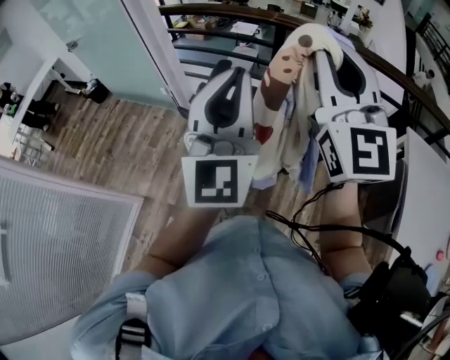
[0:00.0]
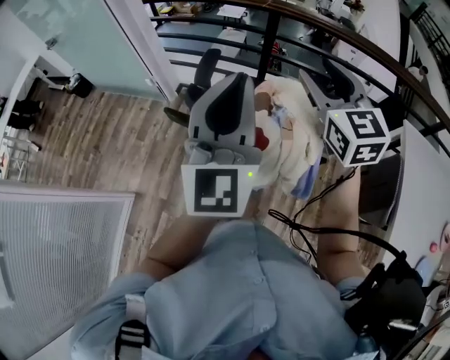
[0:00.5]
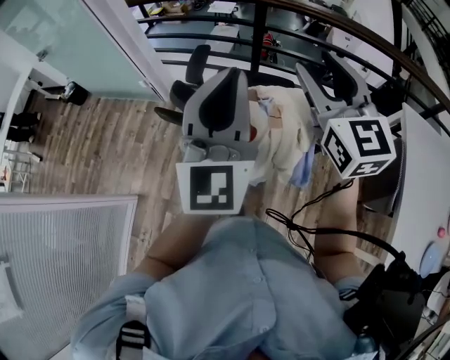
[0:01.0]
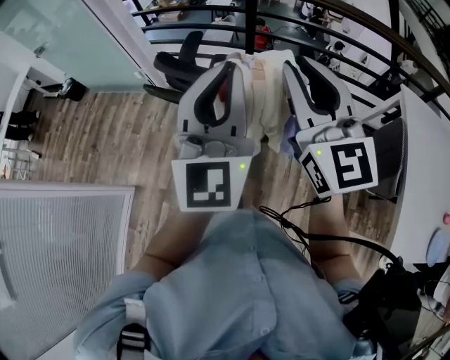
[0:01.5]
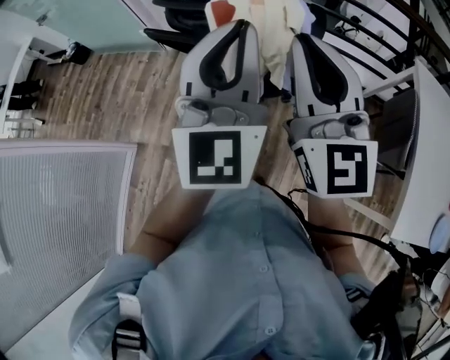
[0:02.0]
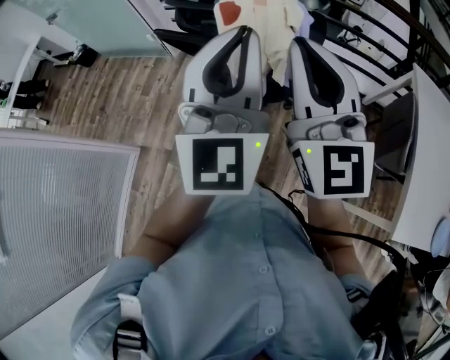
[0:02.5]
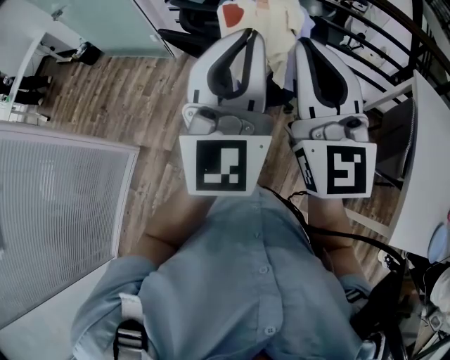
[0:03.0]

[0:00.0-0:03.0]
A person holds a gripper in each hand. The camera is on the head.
0:00.0 to 0:01.5: The left gripper shifts roughly 10 cm downward. The right gripper goes roughly 15 cm downward, goes forward and returns, approximately 10 cm each way, and opens and closes again.
0:01.5 to 0:03.0: The two grippers go about 10 cm backward.

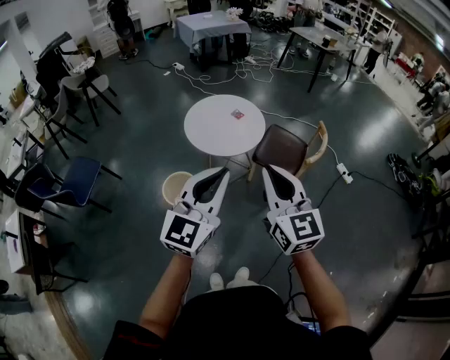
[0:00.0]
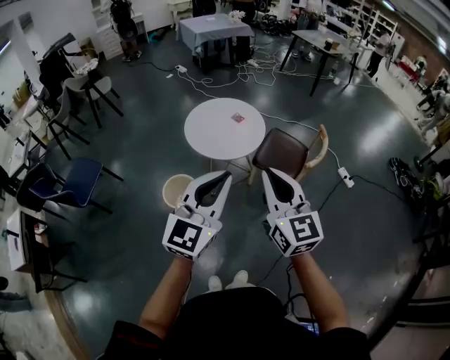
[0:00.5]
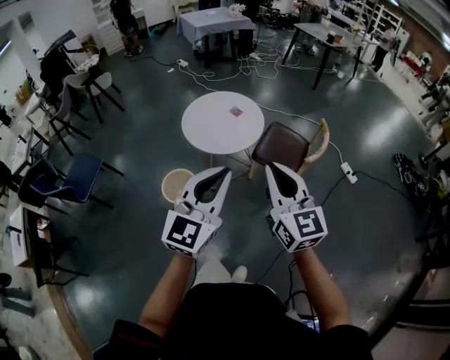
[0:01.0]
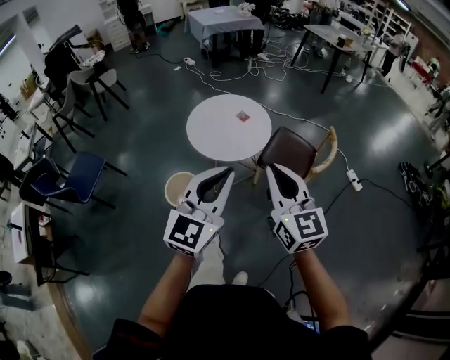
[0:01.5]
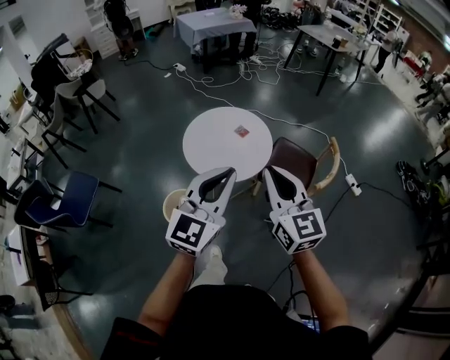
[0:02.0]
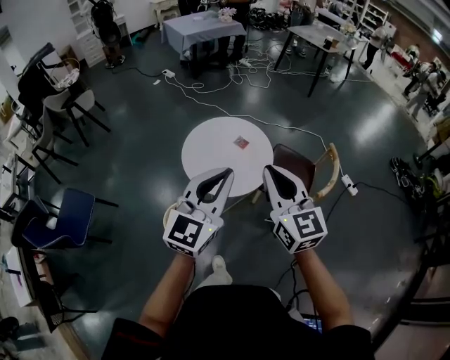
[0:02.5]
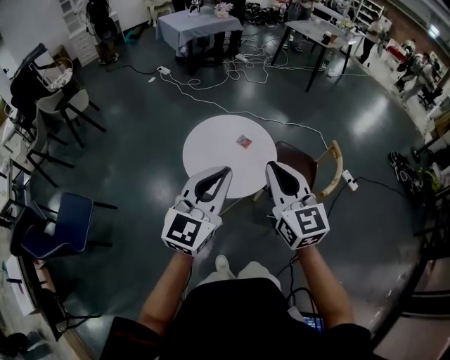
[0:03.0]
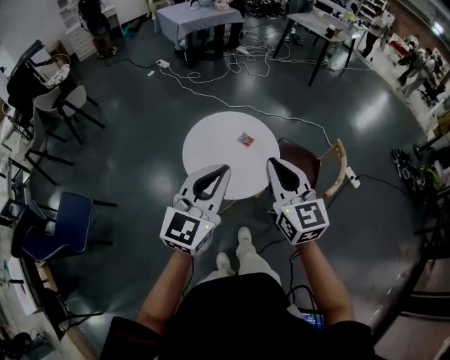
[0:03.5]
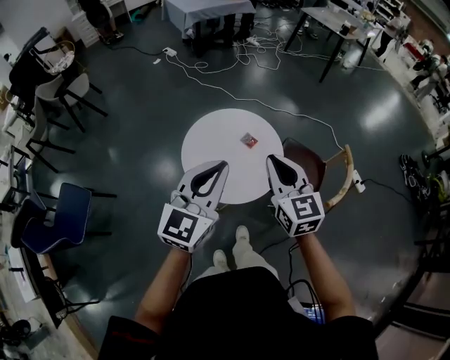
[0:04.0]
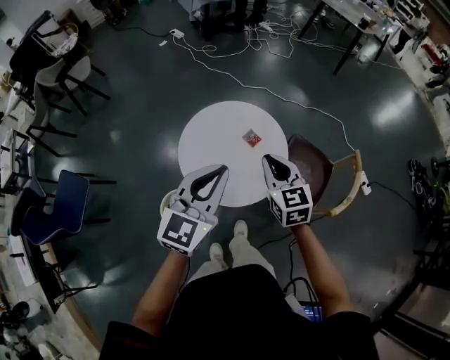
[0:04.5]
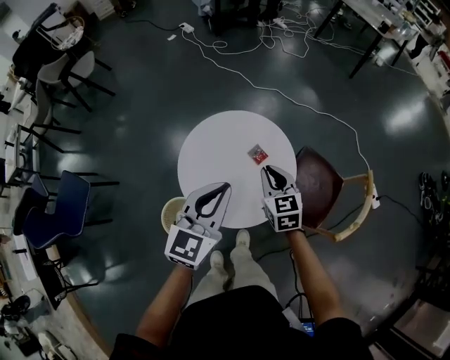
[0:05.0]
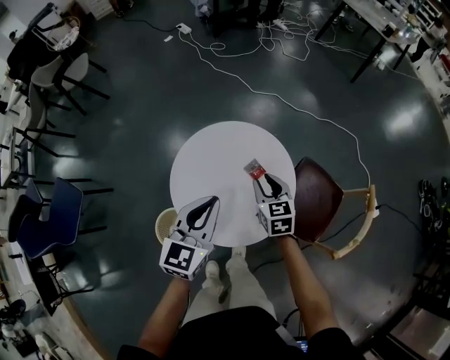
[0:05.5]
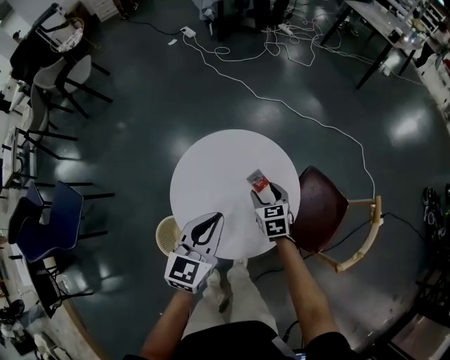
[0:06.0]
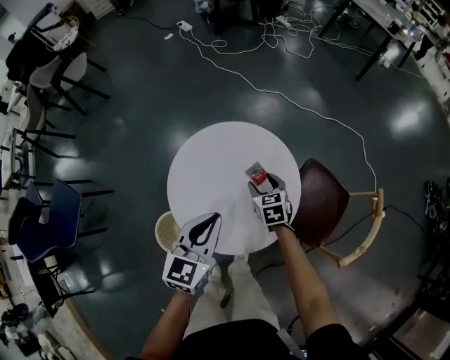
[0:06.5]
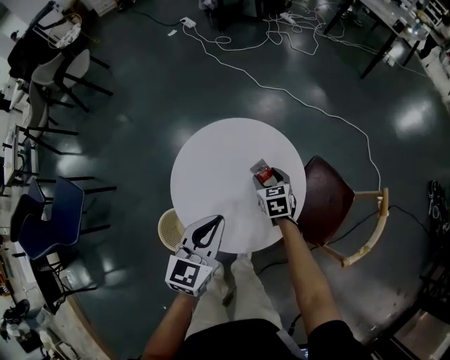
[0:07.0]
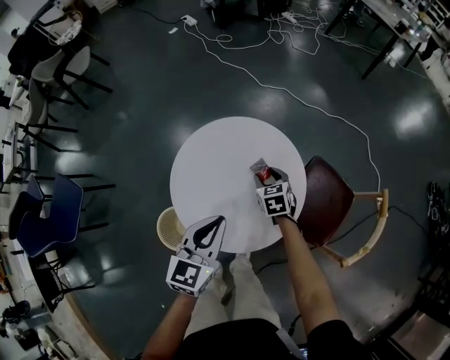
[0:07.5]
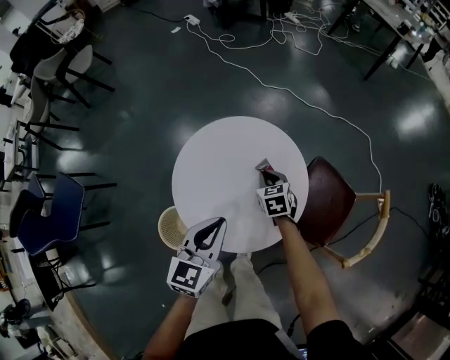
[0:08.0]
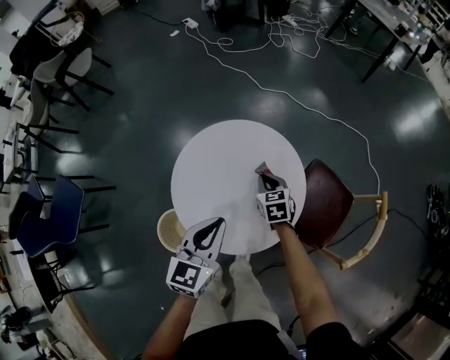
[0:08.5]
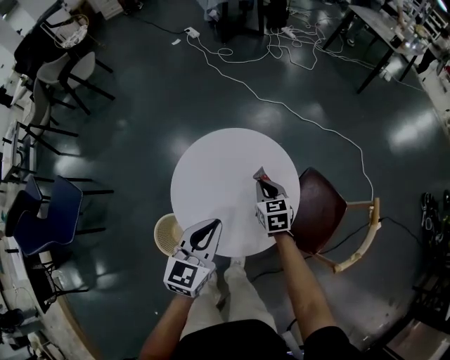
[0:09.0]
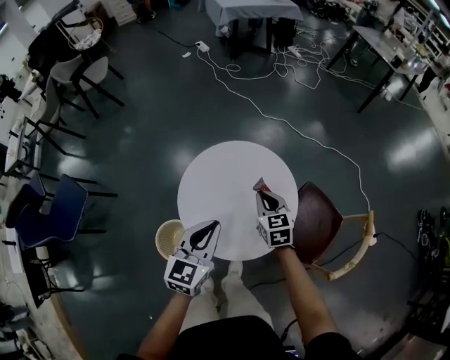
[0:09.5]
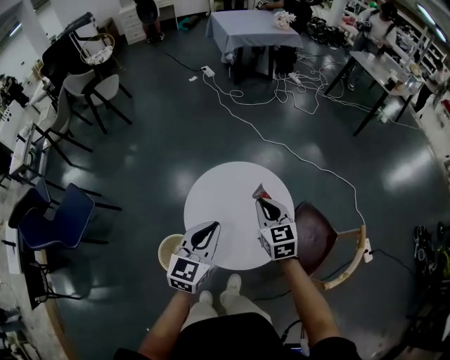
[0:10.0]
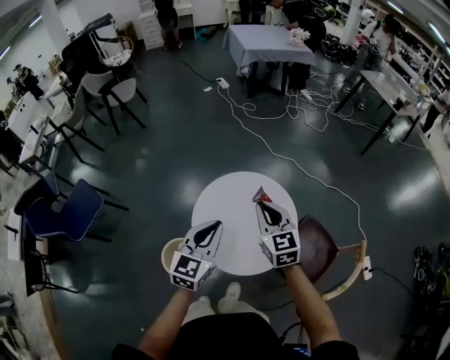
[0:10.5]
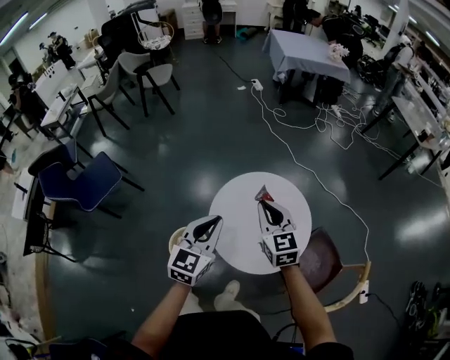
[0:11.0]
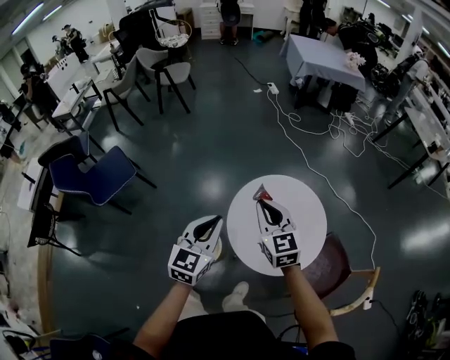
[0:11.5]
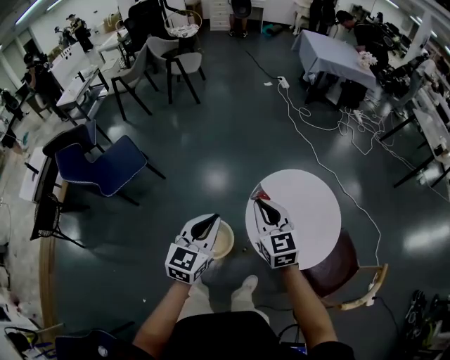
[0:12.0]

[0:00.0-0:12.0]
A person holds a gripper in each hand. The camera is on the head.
0:00.0 to 0:02.0: Both grippers move forward, roughly 25 cm.
0:02.0 to 0:04.0: The left gripper is displaced forward and to the left by approximately 30 cm. The right gripper is displaced forward by about 25 cm.
0:04.0 to 0:06.0: Both grippers travel together downward and forward, roughly 40 cm. The right gripper angles its fingers downward, by about 30 degrees, and opens; the left gripper turns by some 20 degrees.
0:06.0 to 0:08.0: The right gripper is displaced downward by some 5 cm, and closes up.
0:08.0 to 0:10.0: The right gripper heads upward, covering about 30 cm, and swivels about 30 degrees. The left gripper goes approximately 15 cm upward.
0:10.0 to 0:12.0: The two grippers go some 30 cm to the left. The right gripper rotates about 20 degrees.

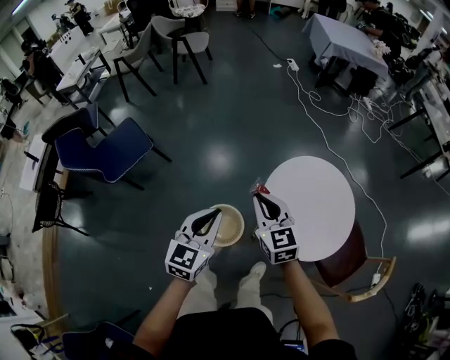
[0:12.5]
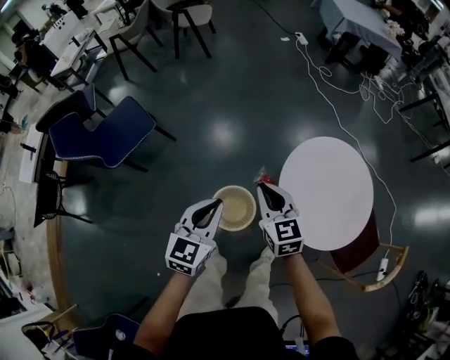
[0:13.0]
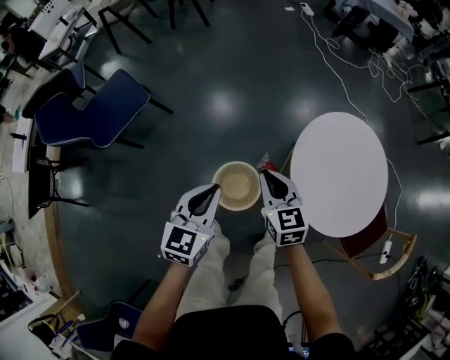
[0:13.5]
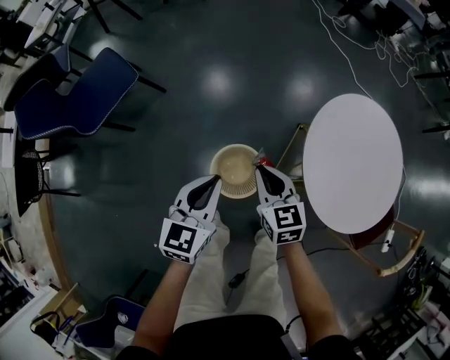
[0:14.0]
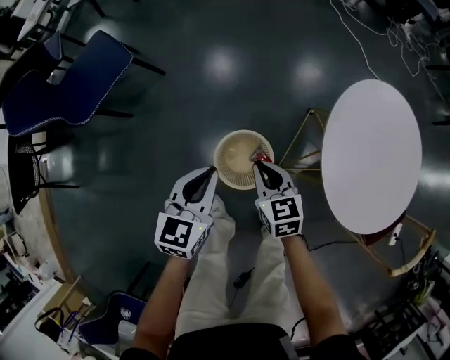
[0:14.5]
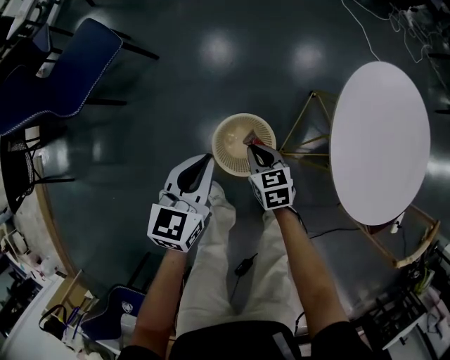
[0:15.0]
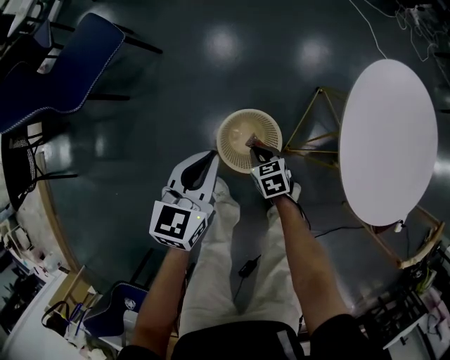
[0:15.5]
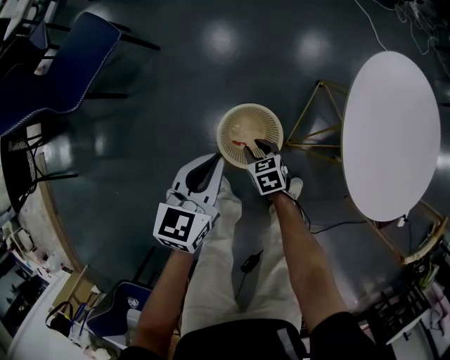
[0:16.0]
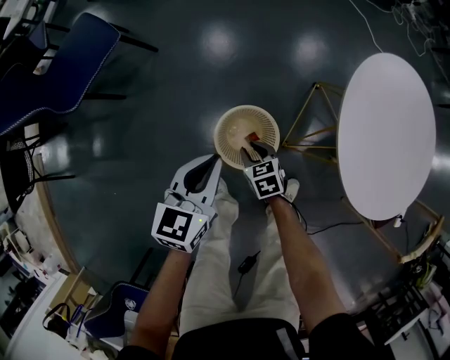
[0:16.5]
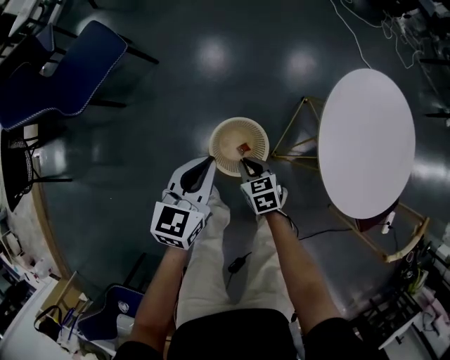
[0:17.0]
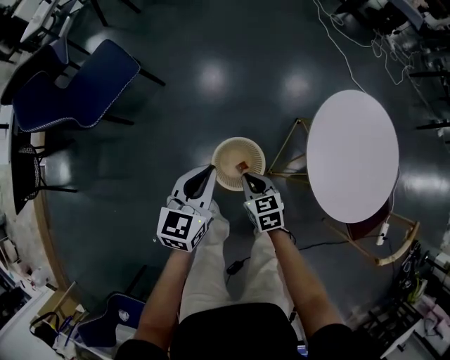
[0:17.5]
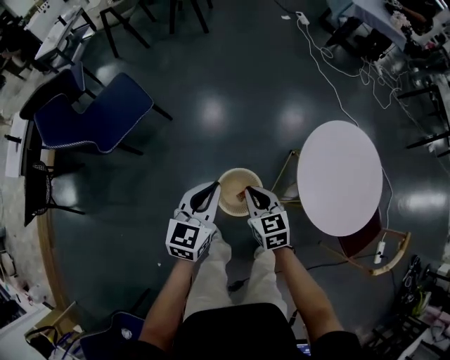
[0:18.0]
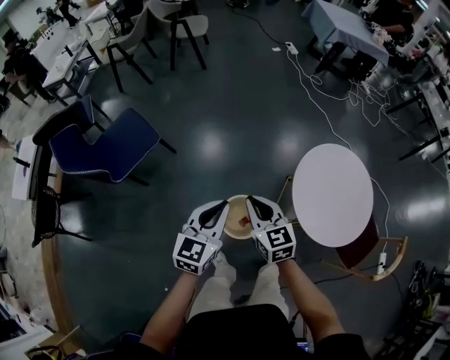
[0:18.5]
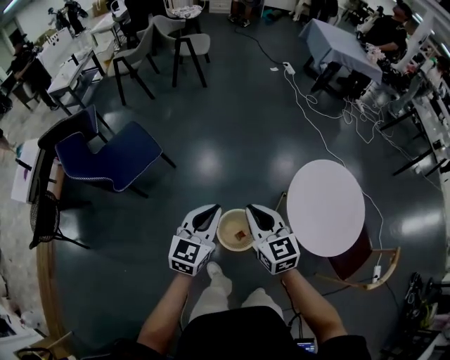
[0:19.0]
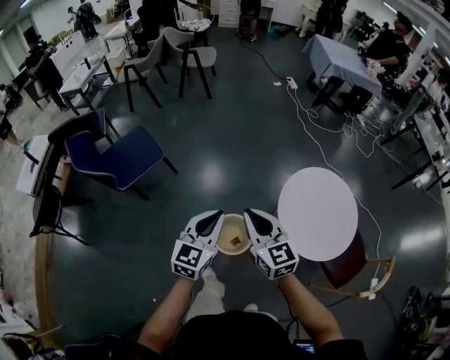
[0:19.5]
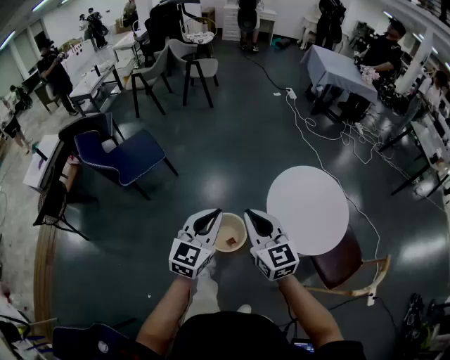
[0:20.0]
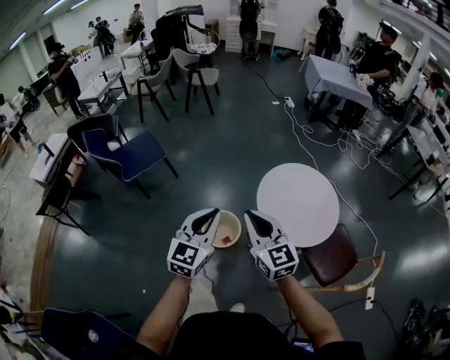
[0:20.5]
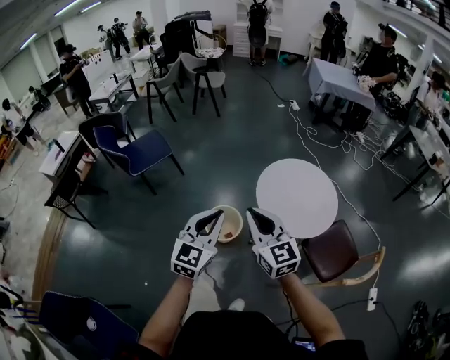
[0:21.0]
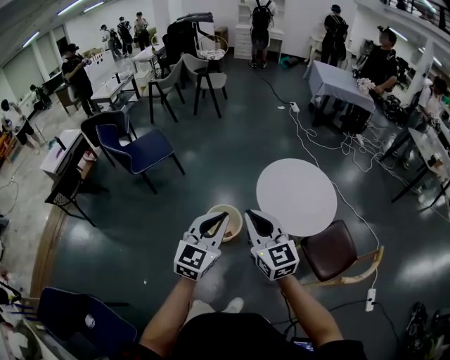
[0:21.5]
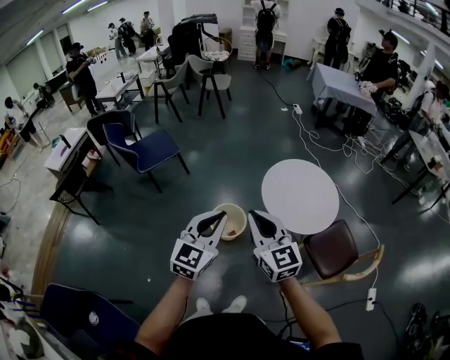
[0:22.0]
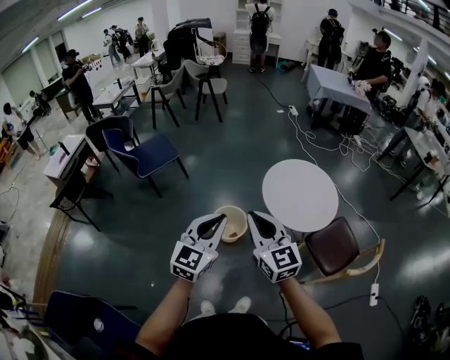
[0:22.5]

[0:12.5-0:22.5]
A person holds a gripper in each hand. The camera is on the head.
0:12.5 to 0:14.5: Both grippers move downward, approximately 40 cm. The right gripper swivels roughly 20 degrees.
0:14.5 to 0:16.5: The right gripper moves downward, about 20 cm, and opens, while the left gripper travels downward by about 5 cm.
0:16.5 to 0:18.5: The right gripper shifts approximately 50 cm upward, points its fingers about 30 degrees further upward, and closes its fingers; the left gripper moves upward, approximately 35 cm.
0:18.5 to 0:20.5: The right gripper moves backward, upward and to the right, about 40 cm, and turns by roughly 20 degrees; the left gripper travels backward, to the right and upward by roughly 40 cm.
0:20.5 to 0:22.5: The grippers both shift backward by about 20 cm.

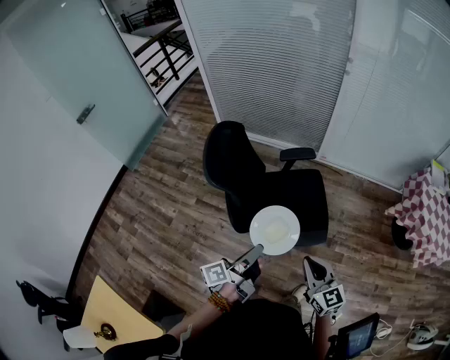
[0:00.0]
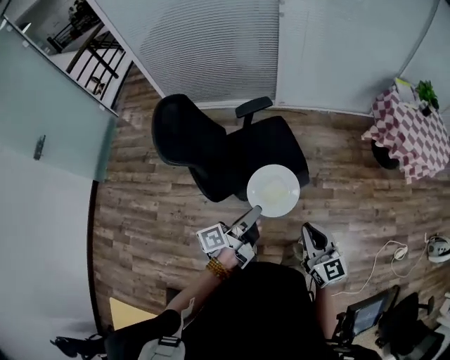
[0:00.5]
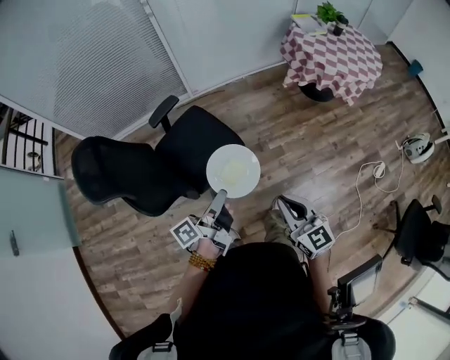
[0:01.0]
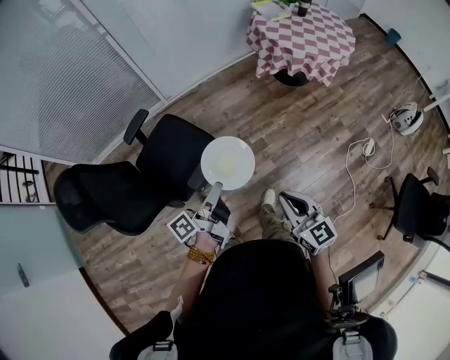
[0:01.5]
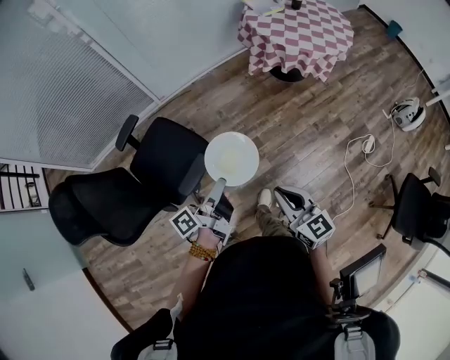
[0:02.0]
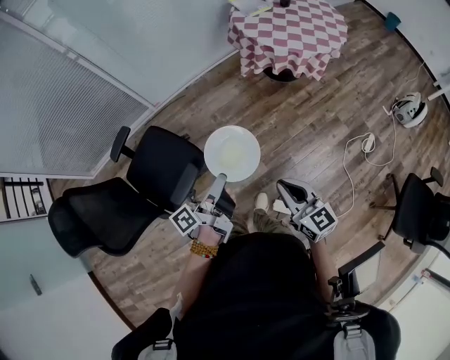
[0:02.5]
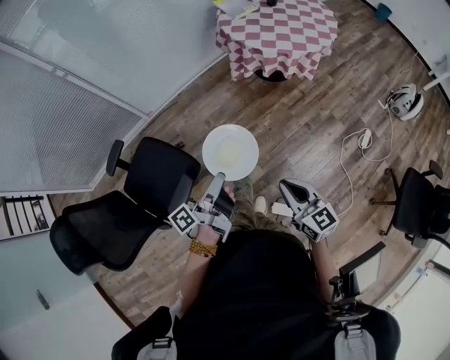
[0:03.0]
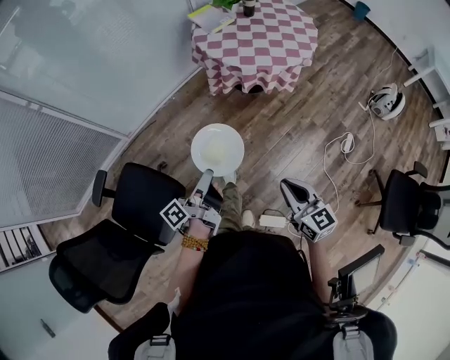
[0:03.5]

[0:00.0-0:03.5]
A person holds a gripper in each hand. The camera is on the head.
0:00.0 to 0:02.0: The right gripper ends up approximately 35 cm from where it was, and turns by approximately 40 degrees, while the left gripper changes place by roughly 40 cm, and turns by roughly 40 degrees.
0:02.0 to 0:03.5: Both grippers move forward and to the right, roughly 30 cm.
